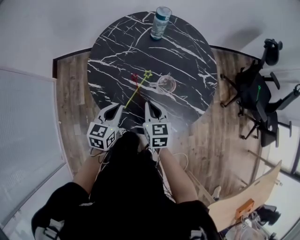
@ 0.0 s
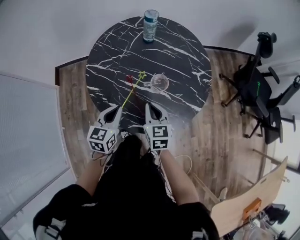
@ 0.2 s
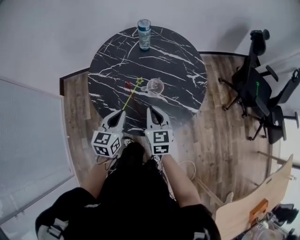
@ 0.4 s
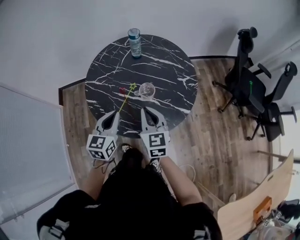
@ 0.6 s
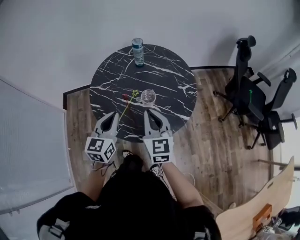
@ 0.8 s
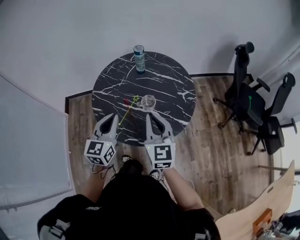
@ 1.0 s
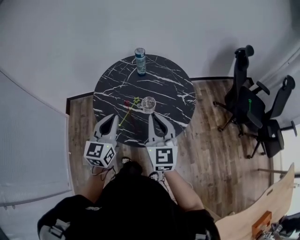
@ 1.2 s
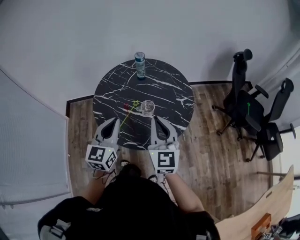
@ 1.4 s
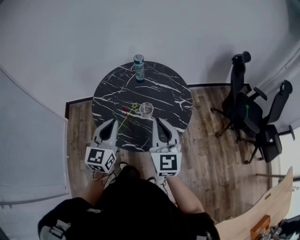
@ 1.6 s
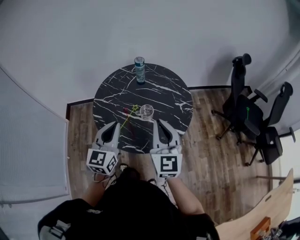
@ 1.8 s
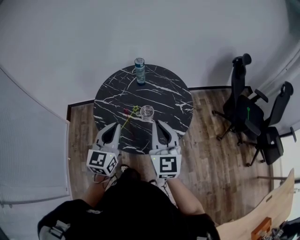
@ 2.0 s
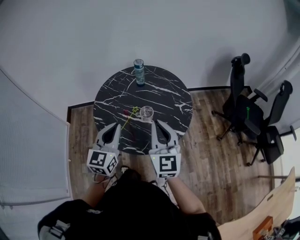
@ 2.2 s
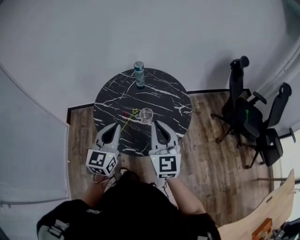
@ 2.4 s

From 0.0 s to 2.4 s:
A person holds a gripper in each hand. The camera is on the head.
From 0.0 s to 1.2 s: The left gripper heads upward, covering about 25 cm, and turns by some 30 degrees. The right gripper heads upward and to the right, covering approximately 30 cm, and angles its fingers upward, by approximately 30 degrees.
From 1.2 s to 2.4 s: The grippers make only small movements.

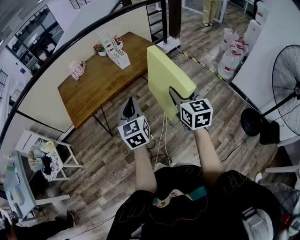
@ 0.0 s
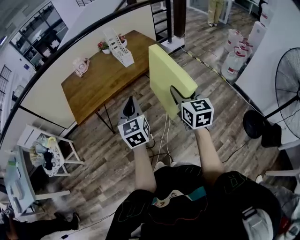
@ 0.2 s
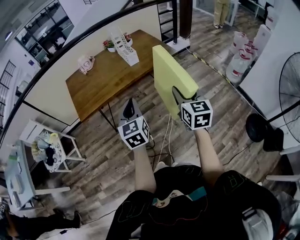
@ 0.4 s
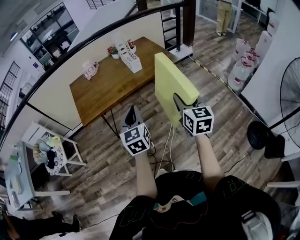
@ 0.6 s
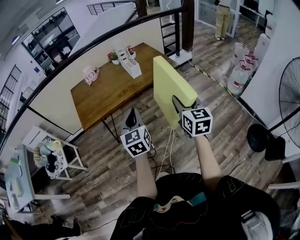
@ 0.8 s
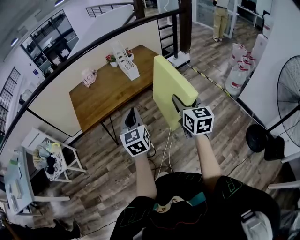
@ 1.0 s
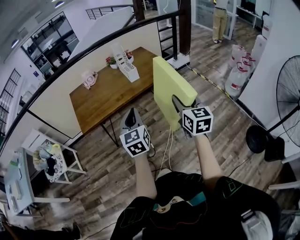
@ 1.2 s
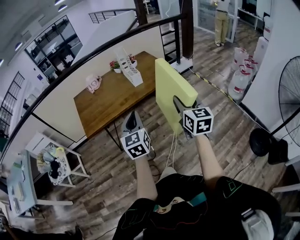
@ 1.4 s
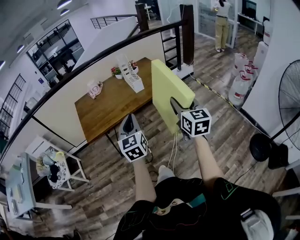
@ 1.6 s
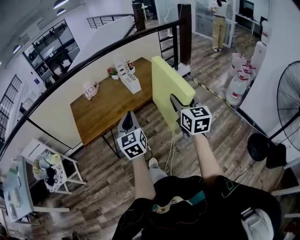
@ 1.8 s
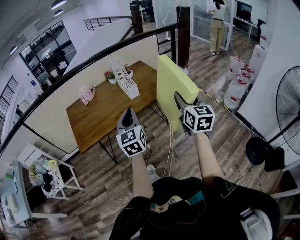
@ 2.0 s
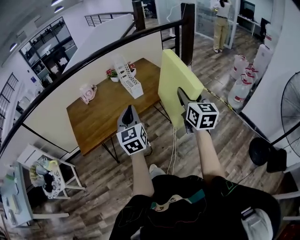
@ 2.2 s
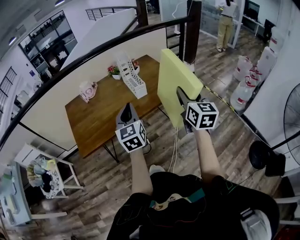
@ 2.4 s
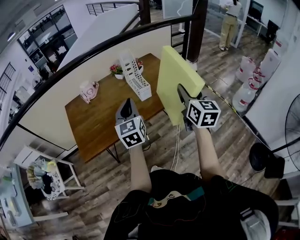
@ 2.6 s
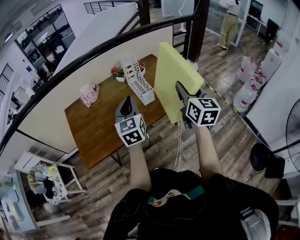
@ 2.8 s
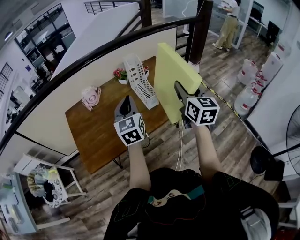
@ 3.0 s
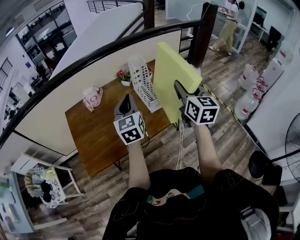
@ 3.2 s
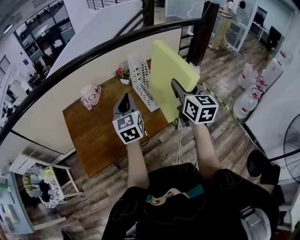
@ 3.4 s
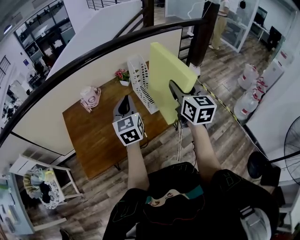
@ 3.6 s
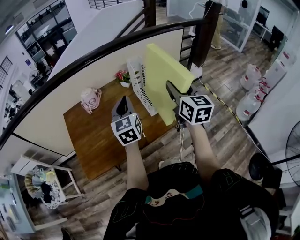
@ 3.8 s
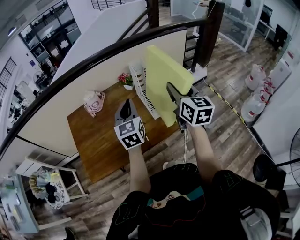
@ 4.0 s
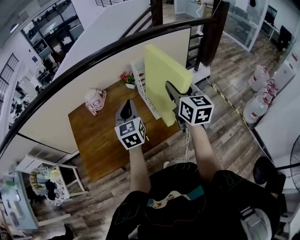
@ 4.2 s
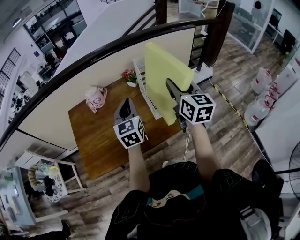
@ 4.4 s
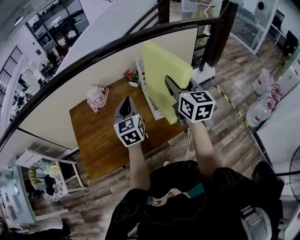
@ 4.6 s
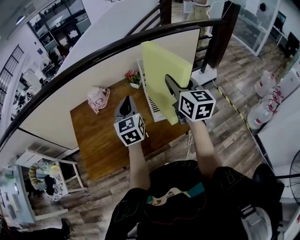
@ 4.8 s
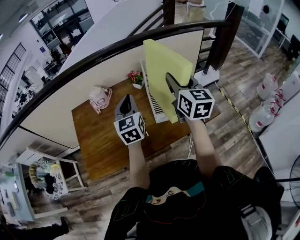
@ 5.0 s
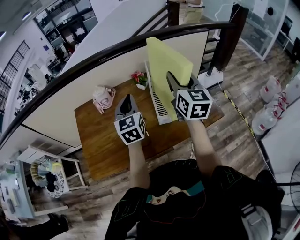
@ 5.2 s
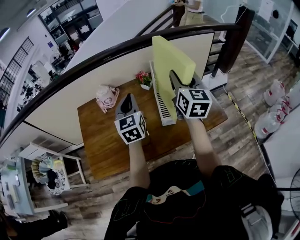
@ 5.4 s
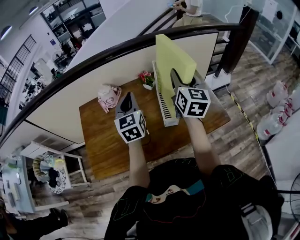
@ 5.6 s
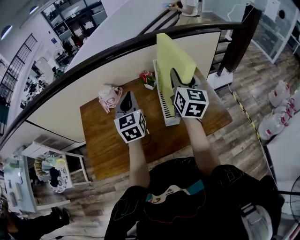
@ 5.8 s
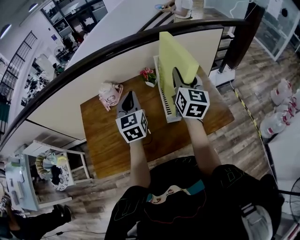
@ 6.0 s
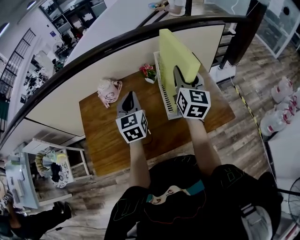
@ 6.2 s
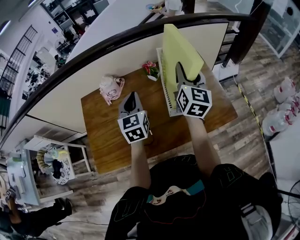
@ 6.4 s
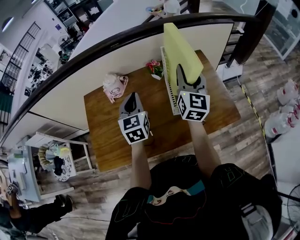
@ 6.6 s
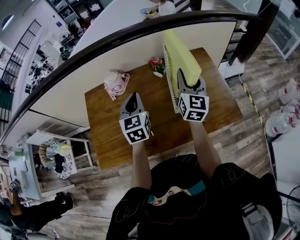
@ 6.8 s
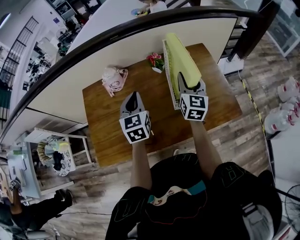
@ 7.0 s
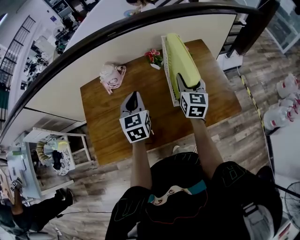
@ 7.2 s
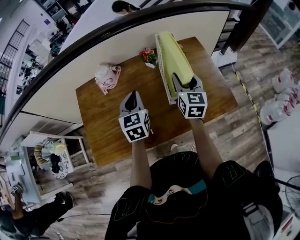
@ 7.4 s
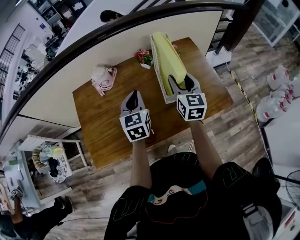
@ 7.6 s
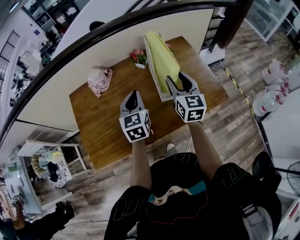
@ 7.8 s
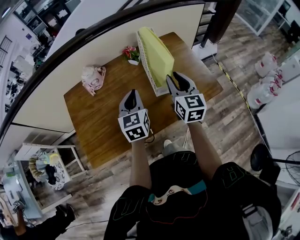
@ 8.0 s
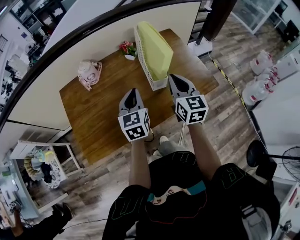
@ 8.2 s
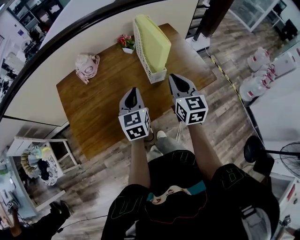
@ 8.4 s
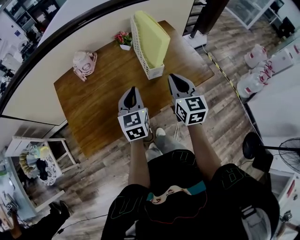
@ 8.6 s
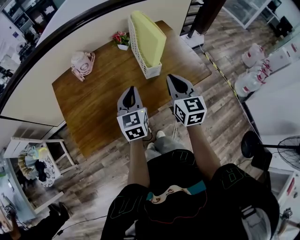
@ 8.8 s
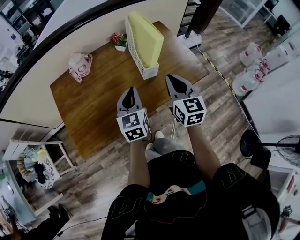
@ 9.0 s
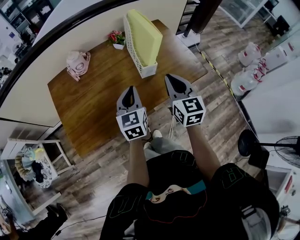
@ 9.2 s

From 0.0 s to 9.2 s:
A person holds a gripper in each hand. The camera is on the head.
From 0.0 s to 1.6 s: The right gripper heads upward, covering some 5 cm.
From 1.6 s to 3.0 s: The two grippers go roughly 35 cm forward.
From 3.0 s to 4.6 s: The left gripper travels forward by about 10 cm. Meanwhile the right gripper moves forward and to the left, approximately 15 cm.
From 4.6 s to 6.2 s: The left gripper is displaced forward by about 10 cm; the right gripper moves forward, about 10 cm.
From 6.2 s to 7.6 s: The left gripper heads downward, covering about 5 cm; the right gripper is displaced downward by approximately 10 cm.
From 7.6 s to 9.2 s: The right gripper is displaced backward by some 15 cm, and closes. Meanwhile the left gripper moves backward and to the right, approximately 15 cm.

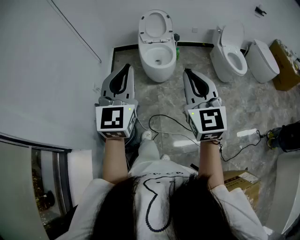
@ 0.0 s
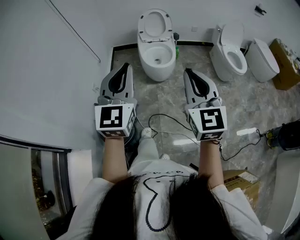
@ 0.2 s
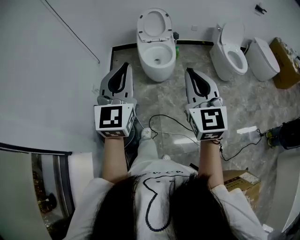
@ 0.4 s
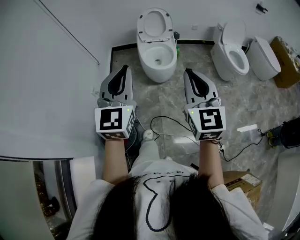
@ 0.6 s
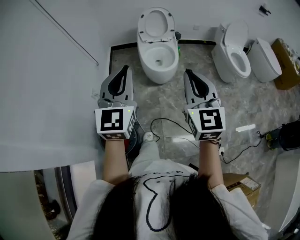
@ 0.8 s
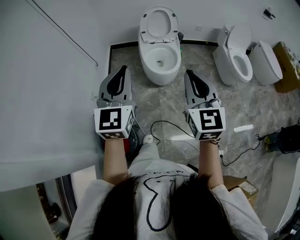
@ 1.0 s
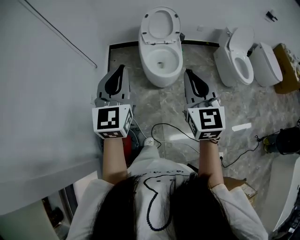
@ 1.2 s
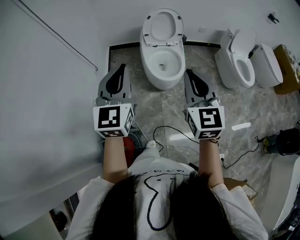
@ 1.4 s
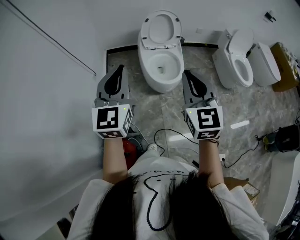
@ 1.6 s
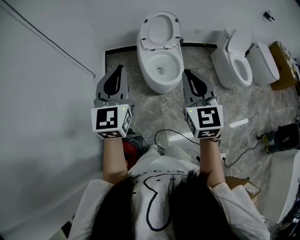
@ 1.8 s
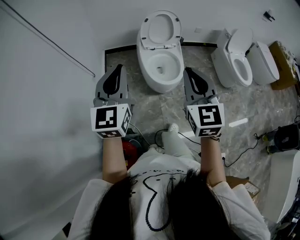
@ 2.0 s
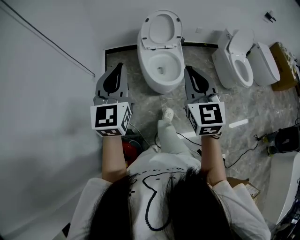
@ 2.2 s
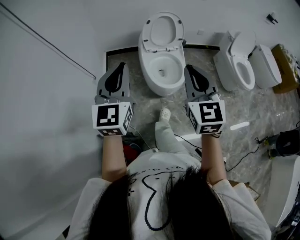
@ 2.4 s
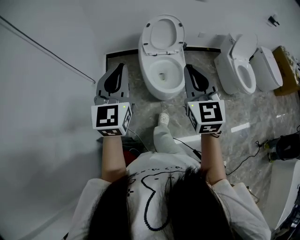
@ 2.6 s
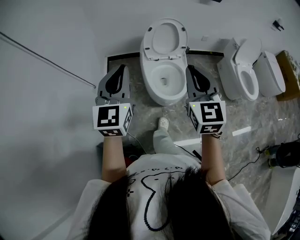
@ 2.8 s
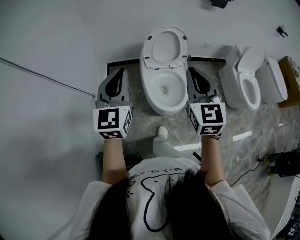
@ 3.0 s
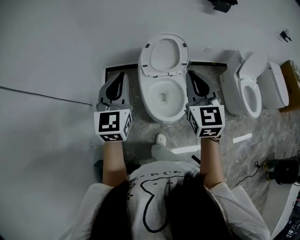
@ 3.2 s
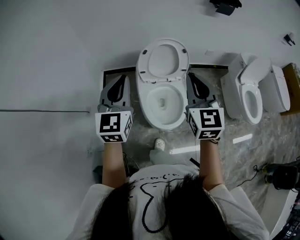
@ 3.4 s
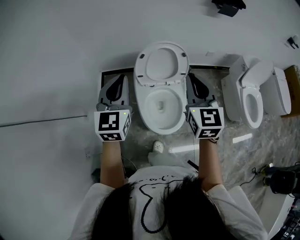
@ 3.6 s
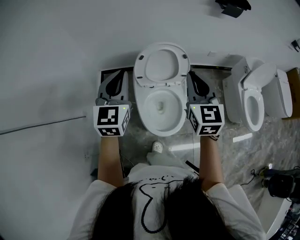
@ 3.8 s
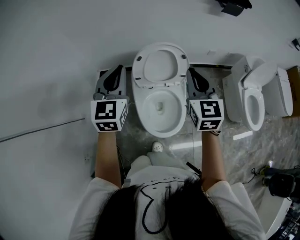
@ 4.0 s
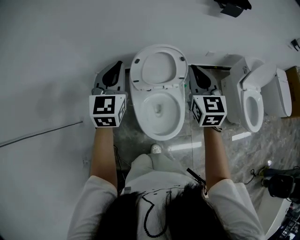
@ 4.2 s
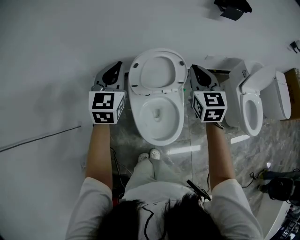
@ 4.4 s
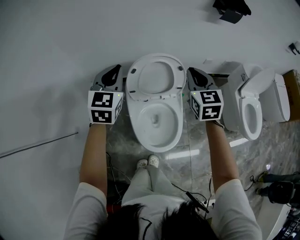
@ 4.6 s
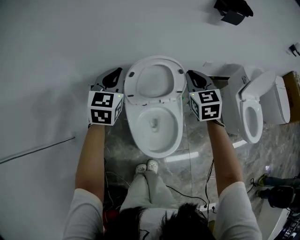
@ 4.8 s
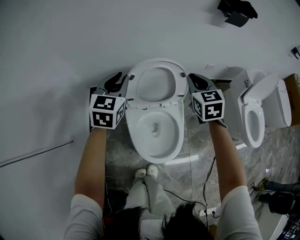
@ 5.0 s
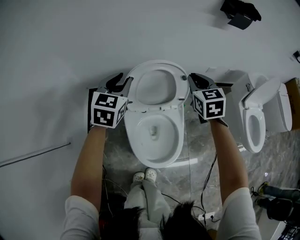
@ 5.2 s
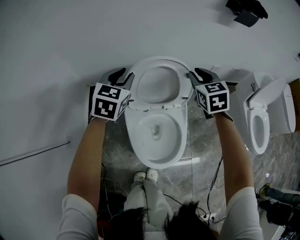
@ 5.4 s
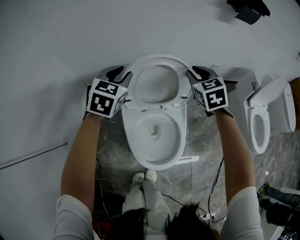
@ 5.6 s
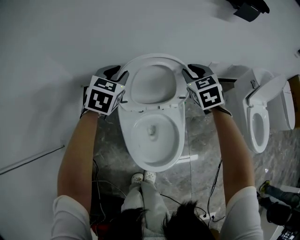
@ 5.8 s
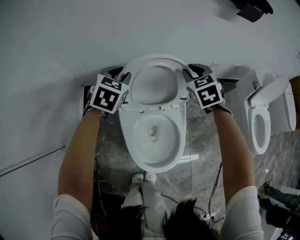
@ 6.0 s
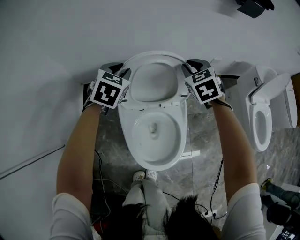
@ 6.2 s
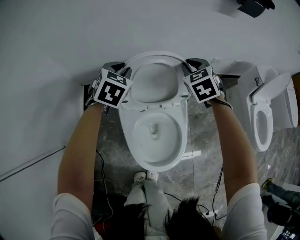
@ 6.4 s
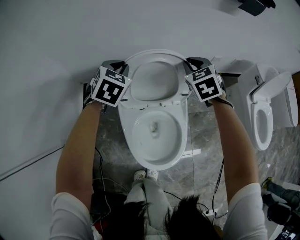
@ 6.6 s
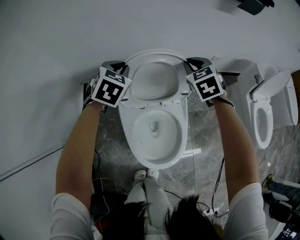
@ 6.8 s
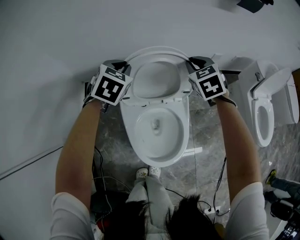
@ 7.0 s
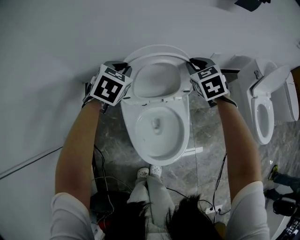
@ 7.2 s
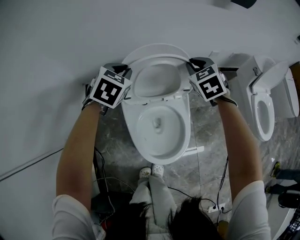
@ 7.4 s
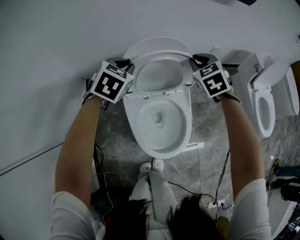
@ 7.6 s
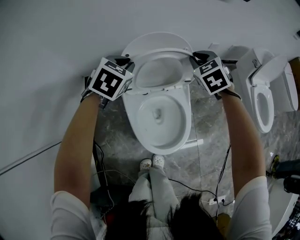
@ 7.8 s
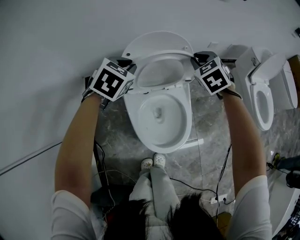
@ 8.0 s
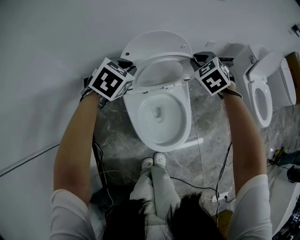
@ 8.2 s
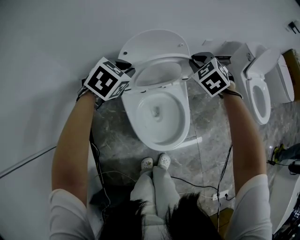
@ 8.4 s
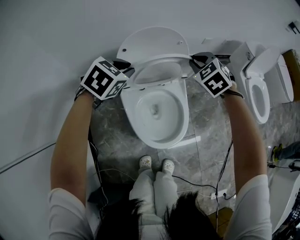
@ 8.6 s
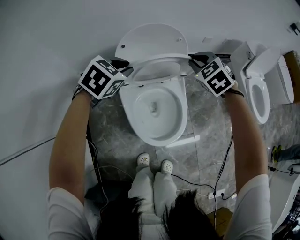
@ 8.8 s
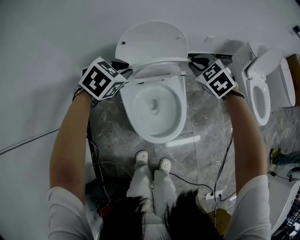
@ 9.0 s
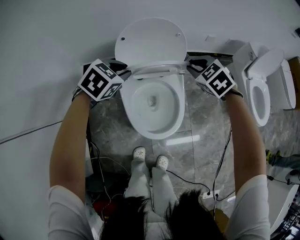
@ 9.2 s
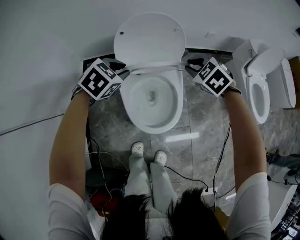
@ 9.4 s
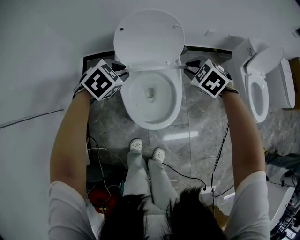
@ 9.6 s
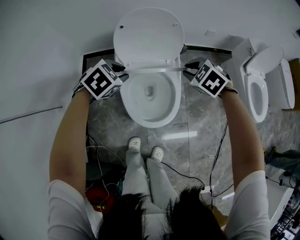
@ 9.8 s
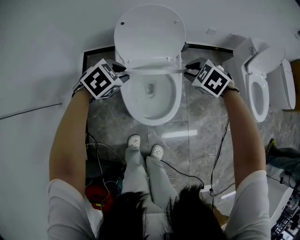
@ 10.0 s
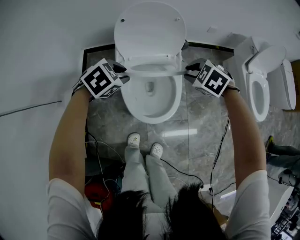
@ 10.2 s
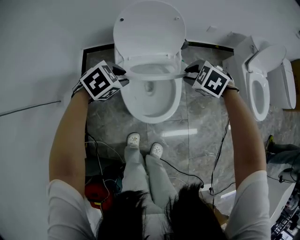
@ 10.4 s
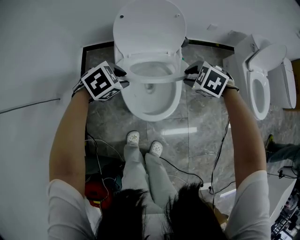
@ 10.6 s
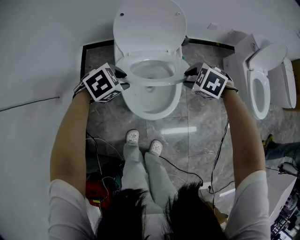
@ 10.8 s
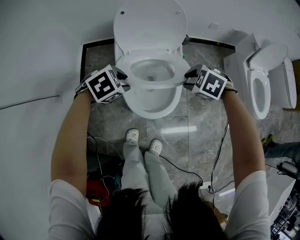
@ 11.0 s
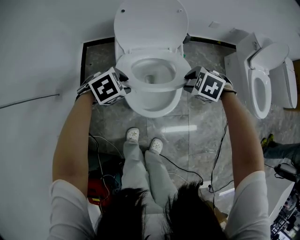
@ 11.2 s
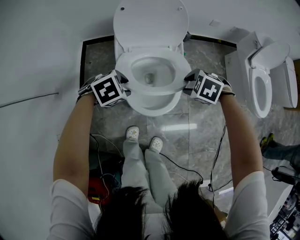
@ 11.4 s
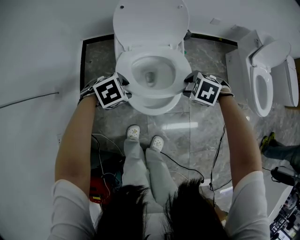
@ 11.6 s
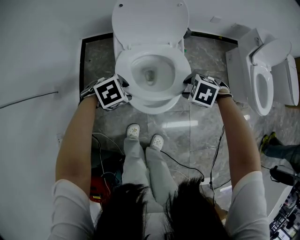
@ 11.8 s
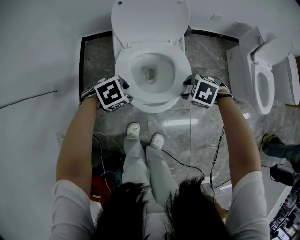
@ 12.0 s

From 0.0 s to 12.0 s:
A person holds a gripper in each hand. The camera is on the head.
From 0.0 s to 1.6 s: Both grippers travel together forward and to the left, approximately 35 cm.
From 1.6 s to 3.0 s: Both grippers move forward, about 25 cm.
From 3.0 s to 4.4 s: Both grippers move forward, approximately 35 cm.
From 4.4 s to 6.0 s: Both grippers travel together downward and forward, approximately 25 cm. The left gripper changes its angle by roughly 30 degrees, and opens up. Meanwhile the right gripper rotates approximately 30 degrees.
From 6.0 s to 7.6 s: The grippers move only a little.
From 7.6 s to 9.0 s: The two grippers go roughly 10 cm backward.
From 9.0 s to 10.4 s: The grippers both shift backward and downward by about 15 cm. The right gripper changes its angle by approximately 30 degrees.
From 10.4 s to 12.0 s: The two grippers go approximately 10 cm downward. The right gripper opens.
